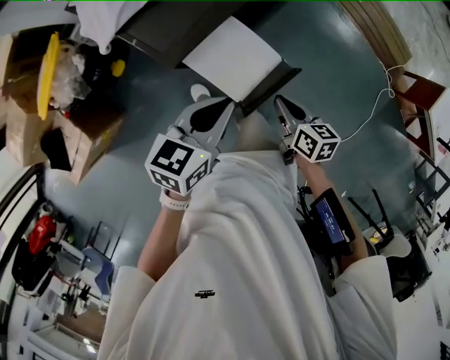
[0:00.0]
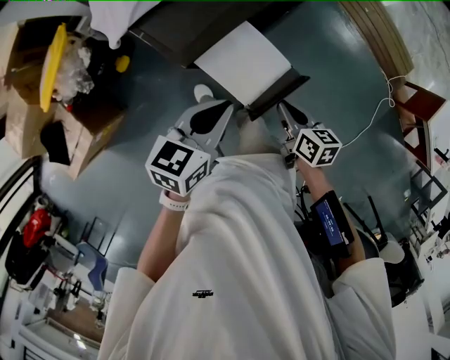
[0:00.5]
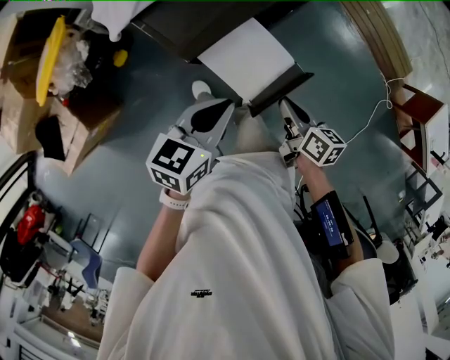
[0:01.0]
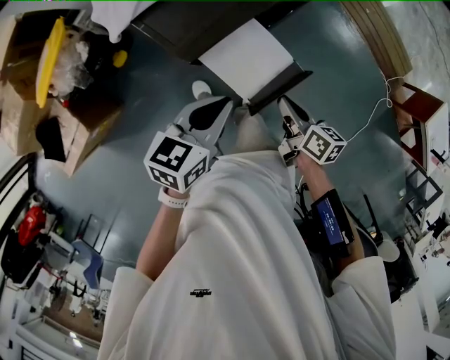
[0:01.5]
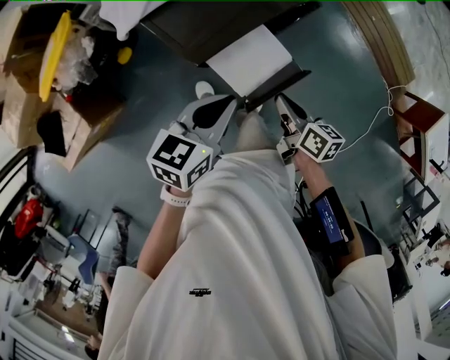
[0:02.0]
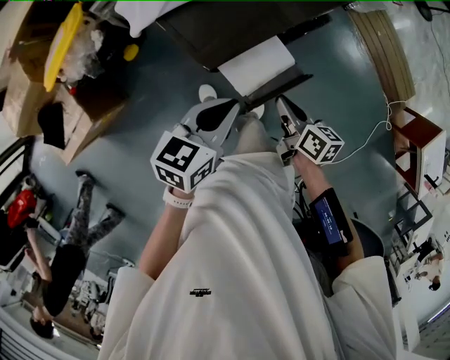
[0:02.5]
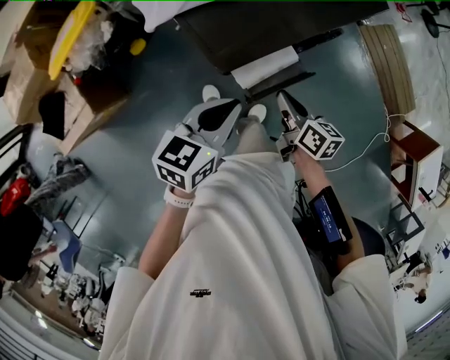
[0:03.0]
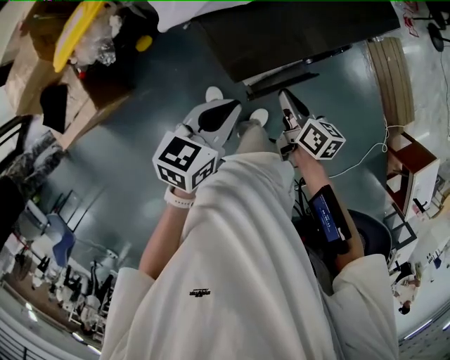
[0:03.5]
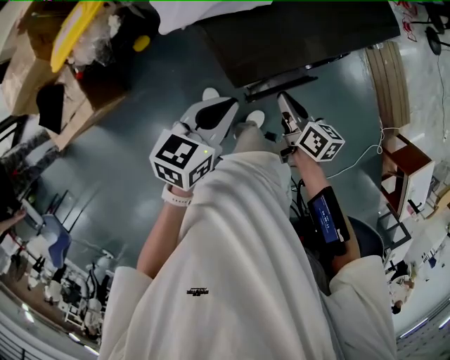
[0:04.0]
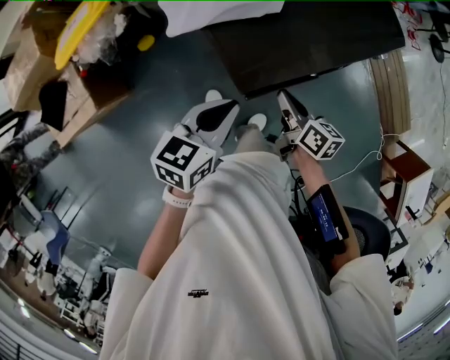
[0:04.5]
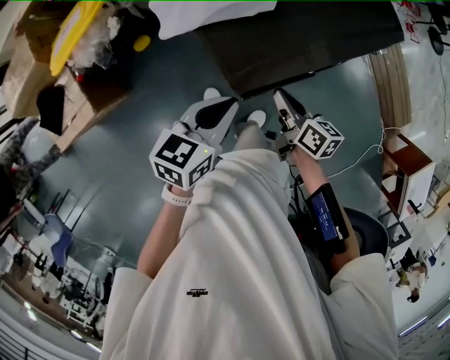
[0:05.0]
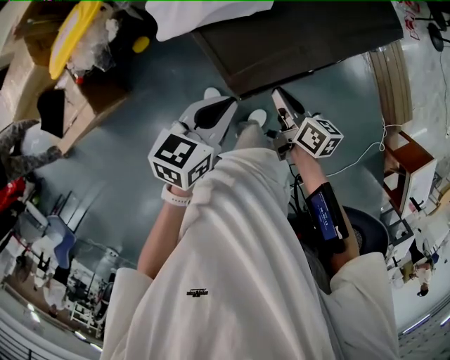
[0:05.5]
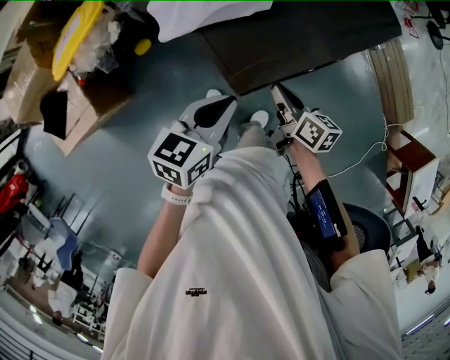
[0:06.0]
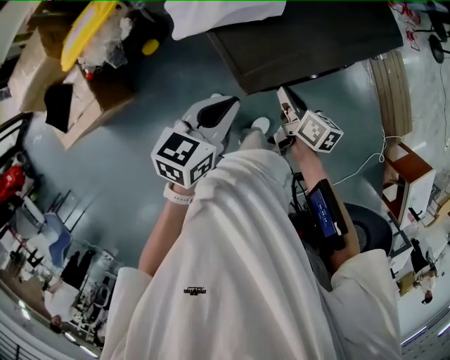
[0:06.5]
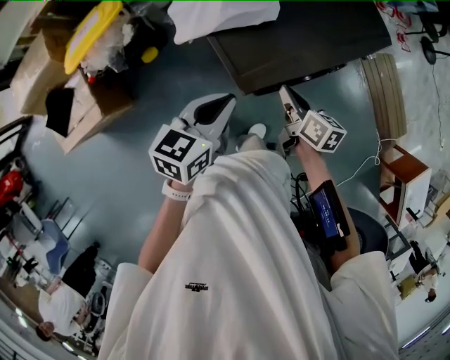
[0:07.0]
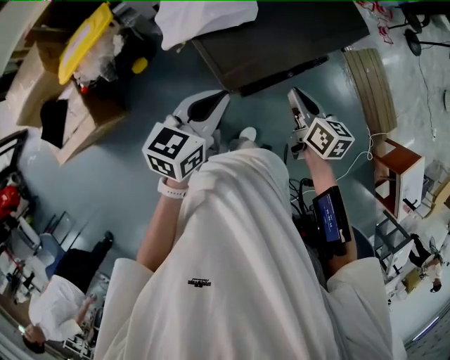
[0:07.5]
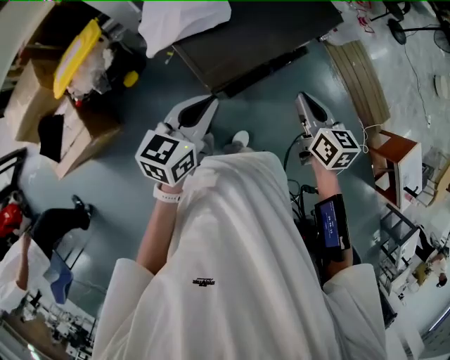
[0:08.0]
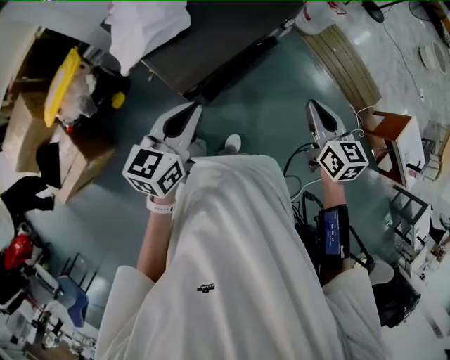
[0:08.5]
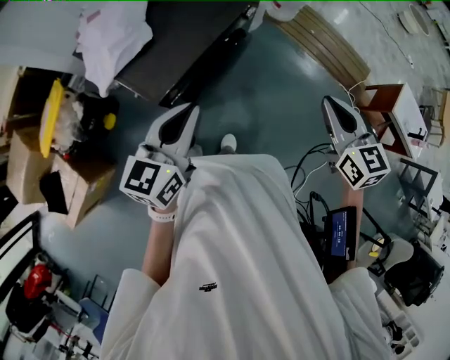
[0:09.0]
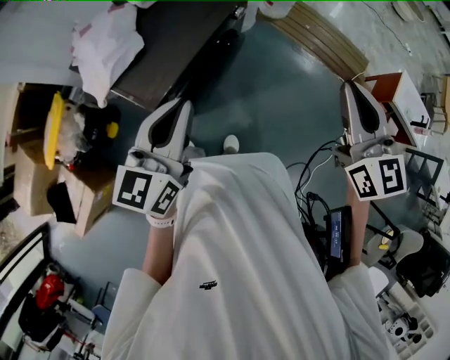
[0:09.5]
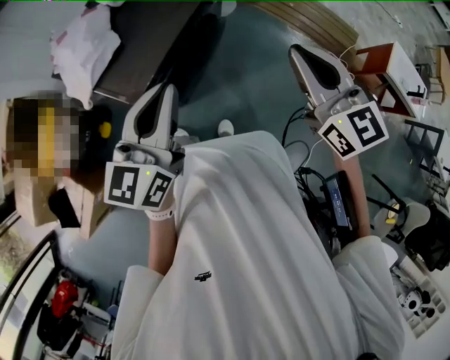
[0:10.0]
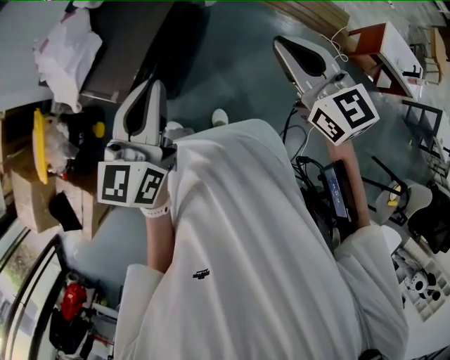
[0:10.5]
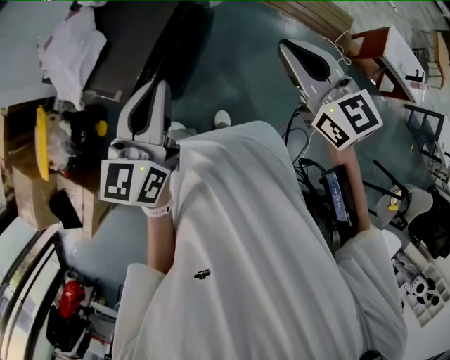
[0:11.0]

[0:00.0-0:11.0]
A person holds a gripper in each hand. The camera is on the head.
0:00.0 to 0:02.0: The right gripper moves about 5 cm.
0:02.0 to 0:03.5: The right gripper heads forward and to the left, covering approximately 10 cm. Meanwhile the left gripper is displaced to the left by about 5 cm.
0:03.5 to 0:05.5: The grippers make only small movements.
0:05.5 to 0:07.5: The left gripper shifts some 5 cm upward; the right gripper is displaced upward and to the right by roughly 10 cm.
0:07.5 to 0:09.0: The left gripper is displaced to the right and upward by some 15 cm. The right gripper is displaced to the right, upward and backward by about 30 cm, and changes its angle by roughly 30 degrees.
0:09.0 to 0:11.0: Both grippers move upward, approximately 5 cm.

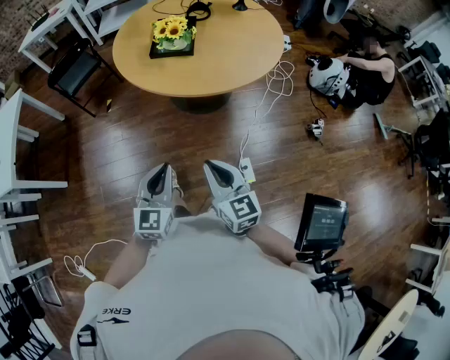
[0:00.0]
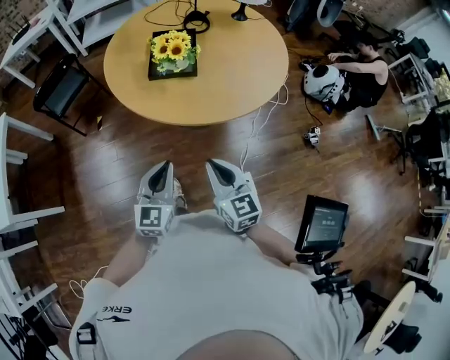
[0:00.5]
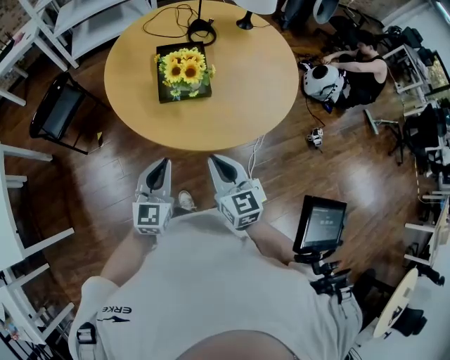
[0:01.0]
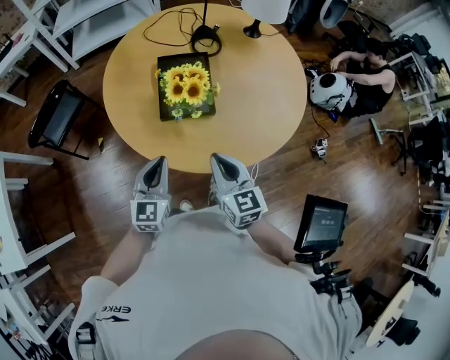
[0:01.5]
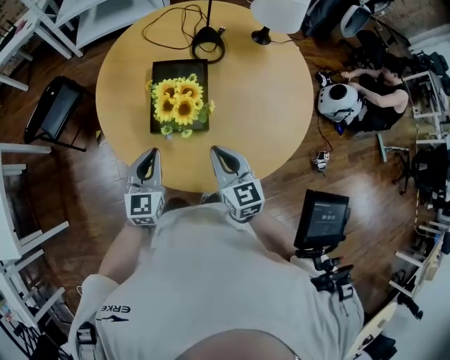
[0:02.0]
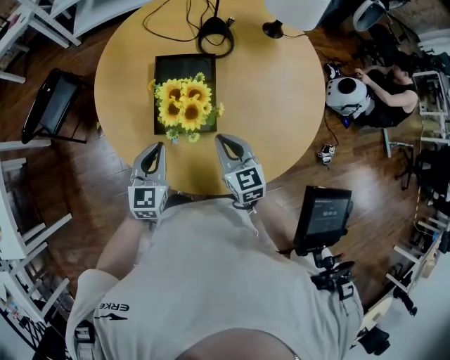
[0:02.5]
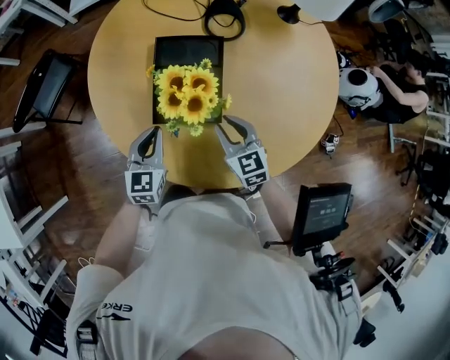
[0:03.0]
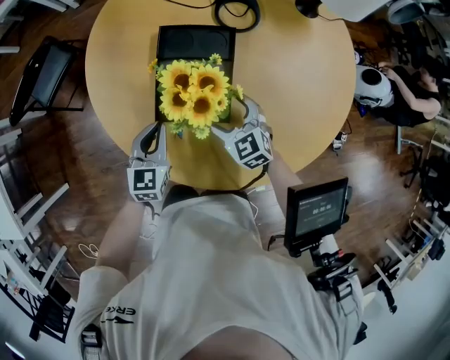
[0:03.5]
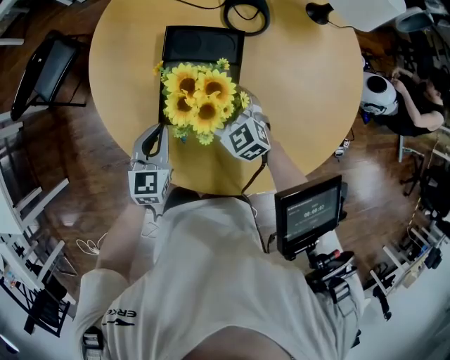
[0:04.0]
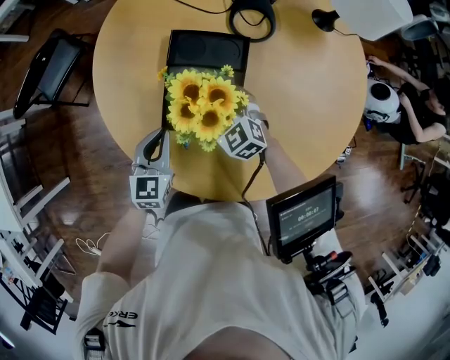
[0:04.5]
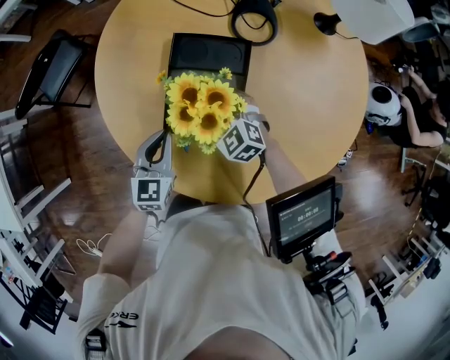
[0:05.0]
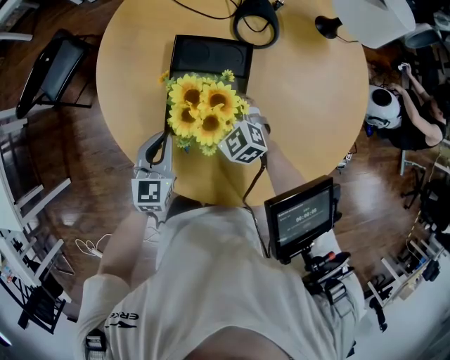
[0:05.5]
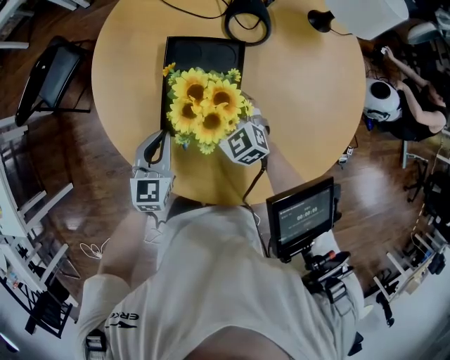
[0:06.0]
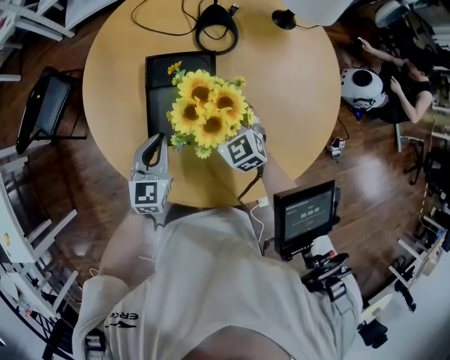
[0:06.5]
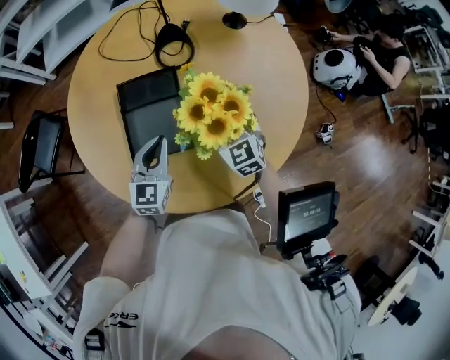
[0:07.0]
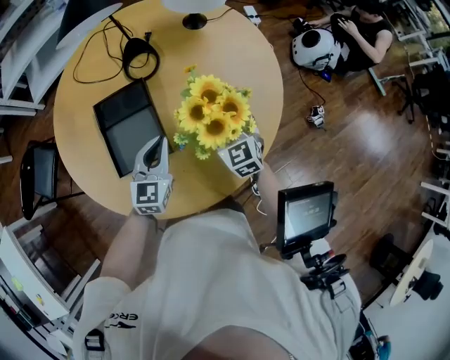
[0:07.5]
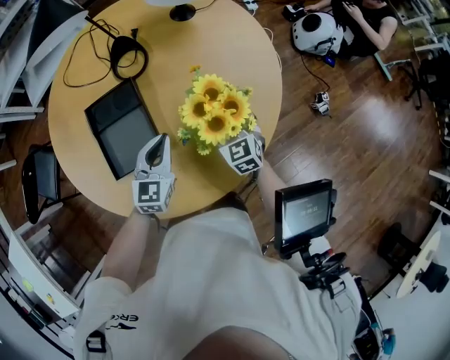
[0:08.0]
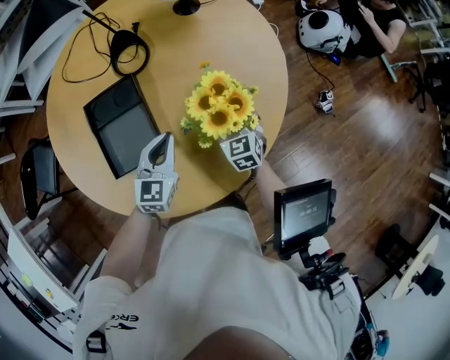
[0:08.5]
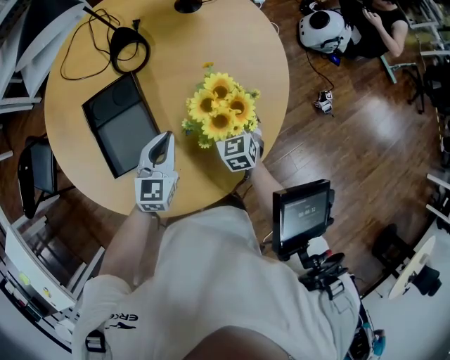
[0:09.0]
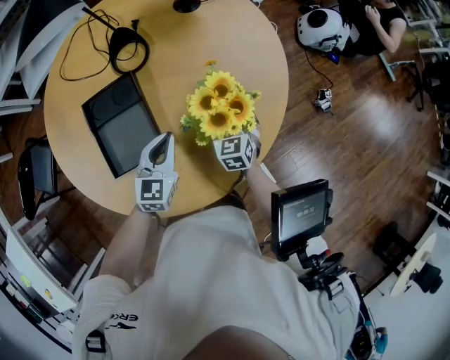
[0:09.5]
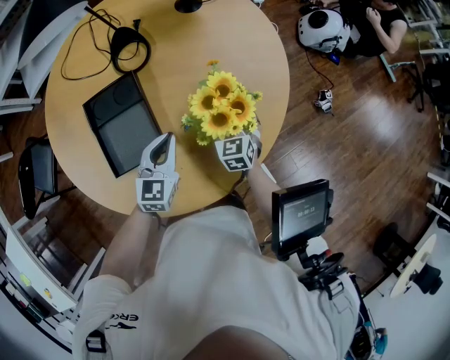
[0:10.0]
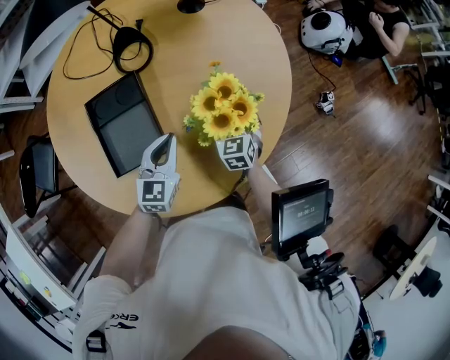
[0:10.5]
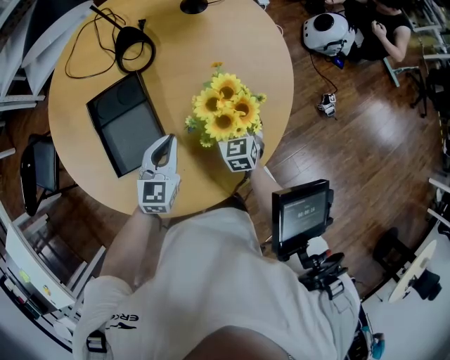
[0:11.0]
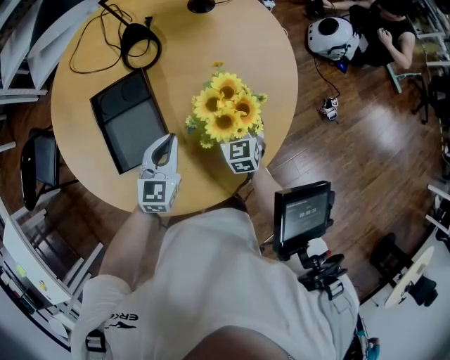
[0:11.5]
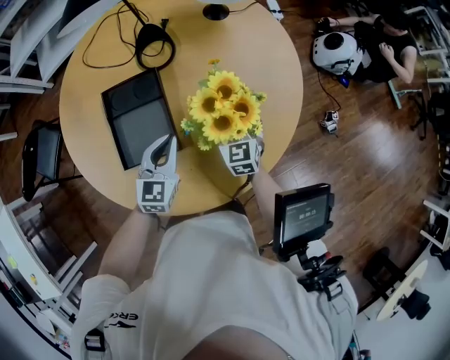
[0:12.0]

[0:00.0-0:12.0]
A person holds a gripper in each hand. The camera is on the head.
0:00.0 to 0:02.0: The pair of grippers is taken forward, about 50 cm.
0:02.0 to 0:04.0: The right gripper travels forward and downward by about 25 cm, changes its angle by roughly 40 degrees, and opens. Meanwhile the left gripper travels downward and forward by some 15 cm.
0:04.0 to 0:06.0: There are only small adjustments of the grippers.
0:06.0 to 0:08.0: The left gripper shifts by about 25 cm, and swivels about 30 degrees. Meanwhile the right gripper goes upward and returns, approximately 10 cm each way, and swivels about 50 degrees.
0:08.0 to 0:10.0: The grippers stay close to where they were, moving slightly.
0:10.0 to 0:12.0: The right gripper travels upward and to the left by approximately 10 cm.

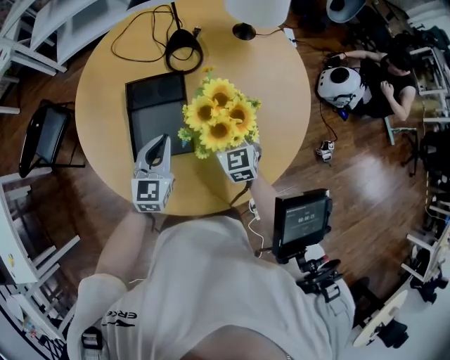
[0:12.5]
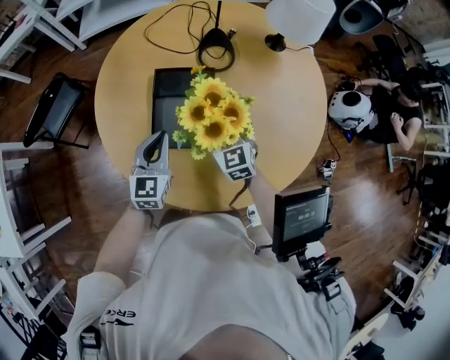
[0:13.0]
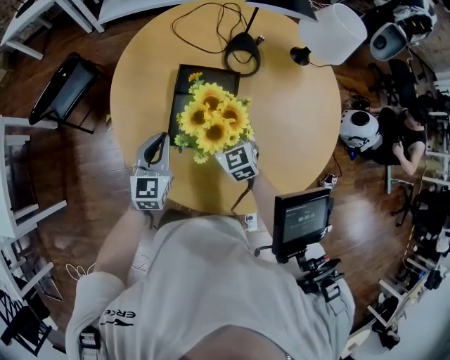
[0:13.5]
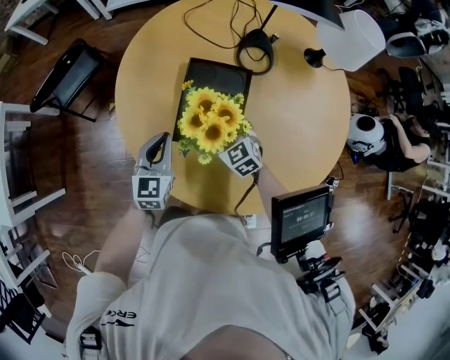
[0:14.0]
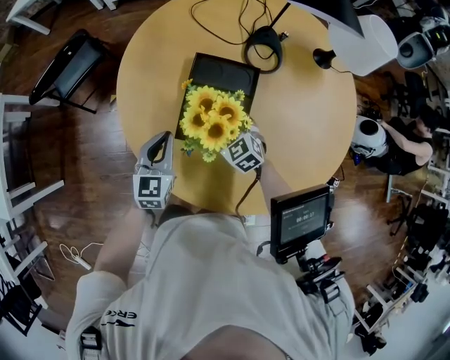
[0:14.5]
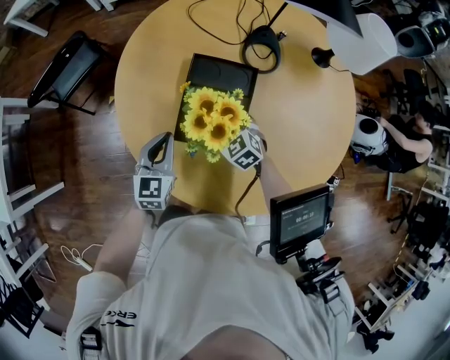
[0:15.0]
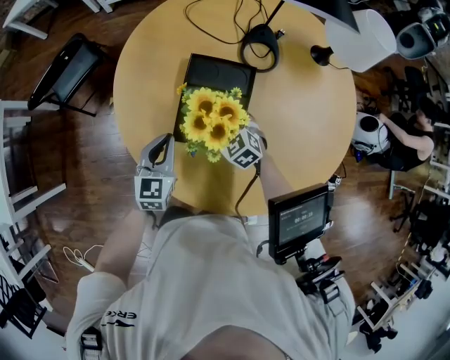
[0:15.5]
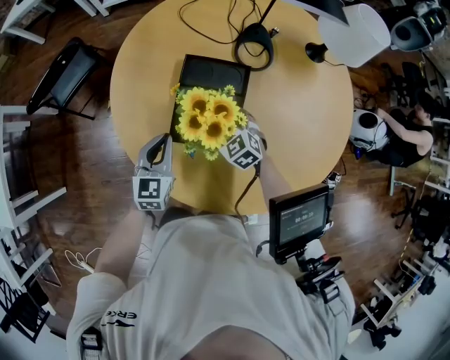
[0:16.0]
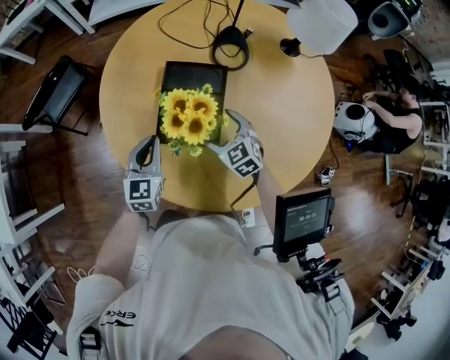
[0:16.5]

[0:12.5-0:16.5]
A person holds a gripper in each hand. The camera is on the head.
0:12.5 to 0:14.5: The right gripper changes place by some 20 cm, and turns by approximately 40 degrees; the left gripper ends up about 15 cm from where it was.
0:14.5 to 0:16.5: The right gripper is displaced to the right by some 5 cm.
